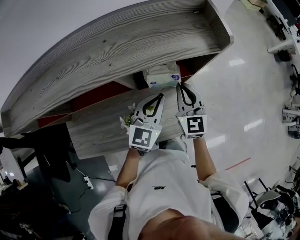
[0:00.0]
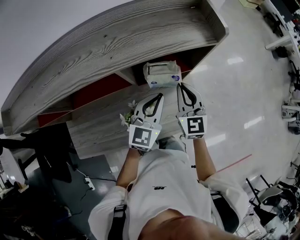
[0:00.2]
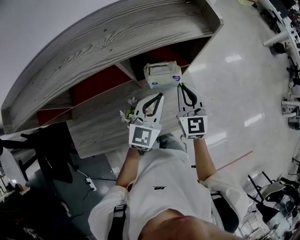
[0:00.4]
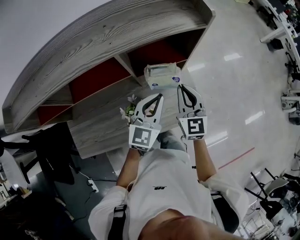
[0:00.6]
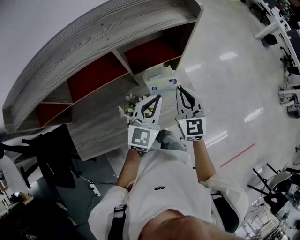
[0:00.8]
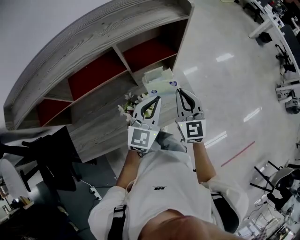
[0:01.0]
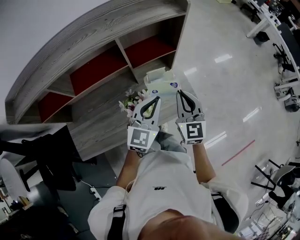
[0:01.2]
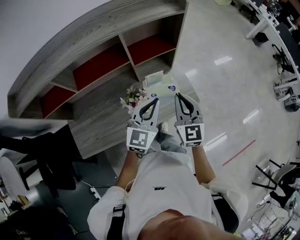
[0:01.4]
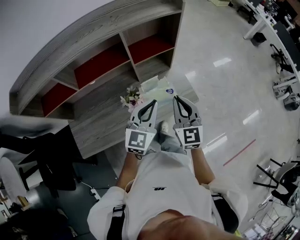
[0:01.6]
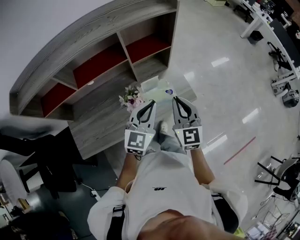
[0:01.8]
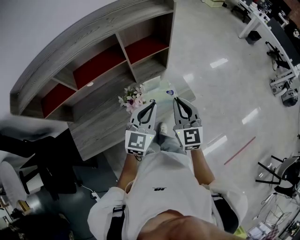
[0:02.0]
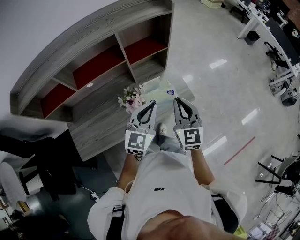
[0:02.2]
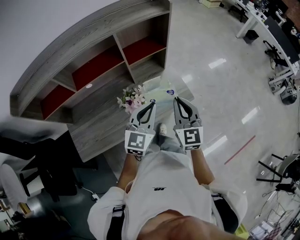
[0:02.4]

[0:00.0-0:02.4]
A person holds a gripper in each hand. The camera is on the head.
0:00.0 to 0:01.2: The two grippers go some 15 cm backward.
0:01.2 to 0:02.4: Both grippers move backward, some 10 cm.

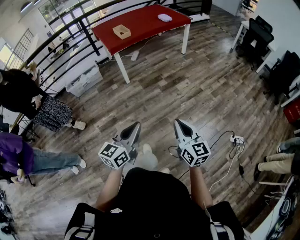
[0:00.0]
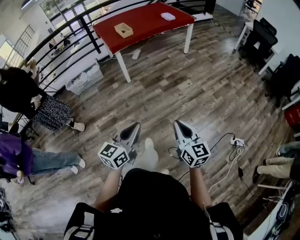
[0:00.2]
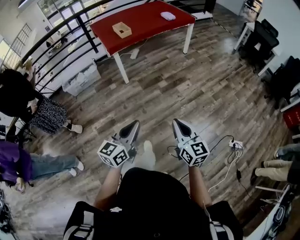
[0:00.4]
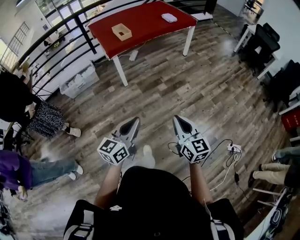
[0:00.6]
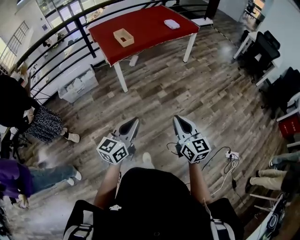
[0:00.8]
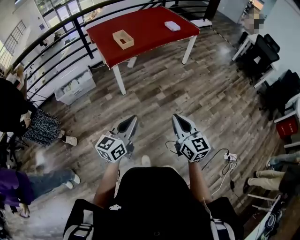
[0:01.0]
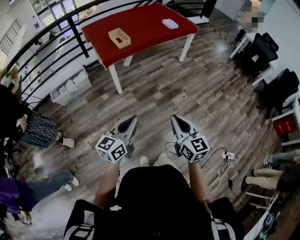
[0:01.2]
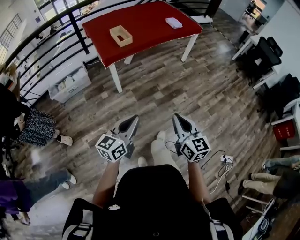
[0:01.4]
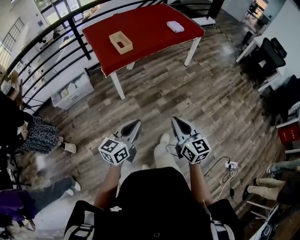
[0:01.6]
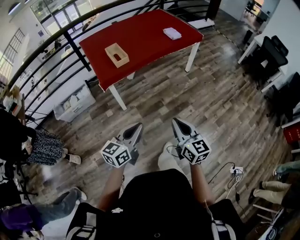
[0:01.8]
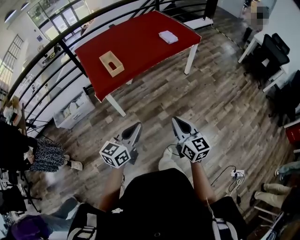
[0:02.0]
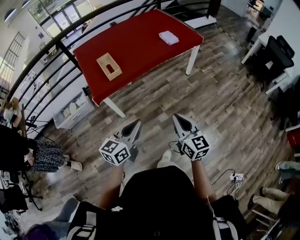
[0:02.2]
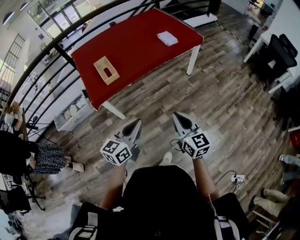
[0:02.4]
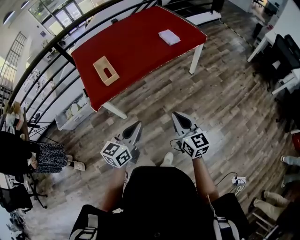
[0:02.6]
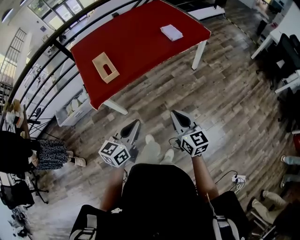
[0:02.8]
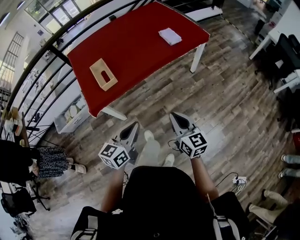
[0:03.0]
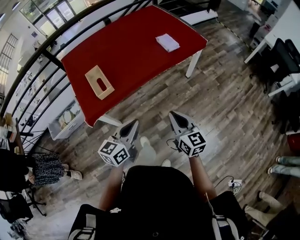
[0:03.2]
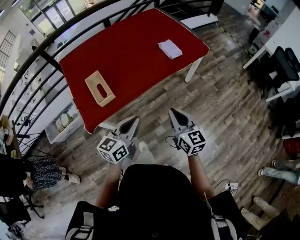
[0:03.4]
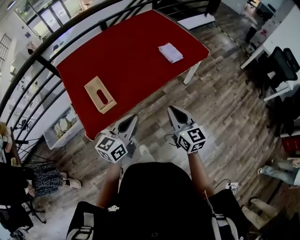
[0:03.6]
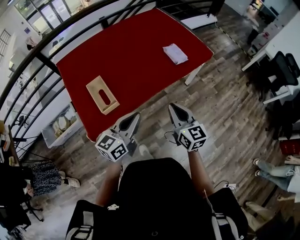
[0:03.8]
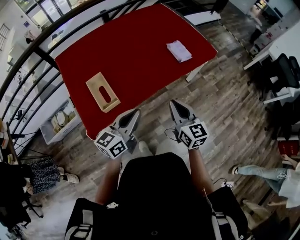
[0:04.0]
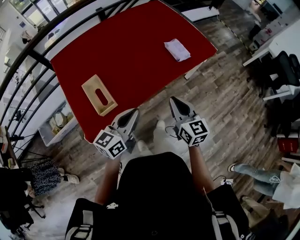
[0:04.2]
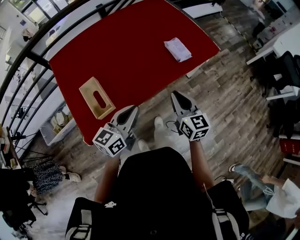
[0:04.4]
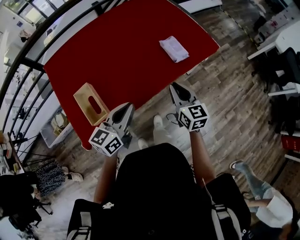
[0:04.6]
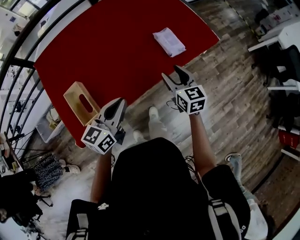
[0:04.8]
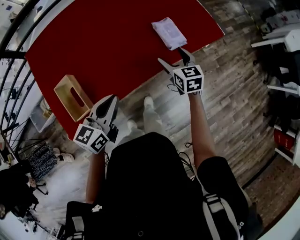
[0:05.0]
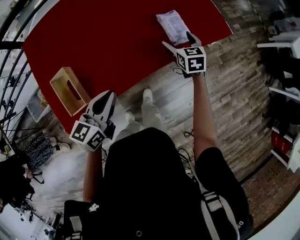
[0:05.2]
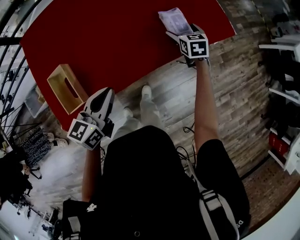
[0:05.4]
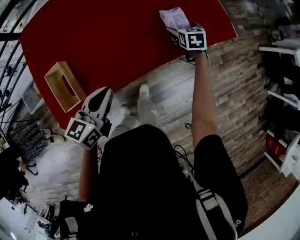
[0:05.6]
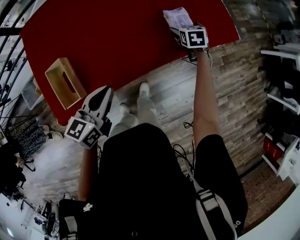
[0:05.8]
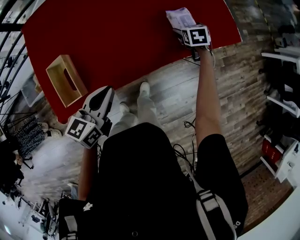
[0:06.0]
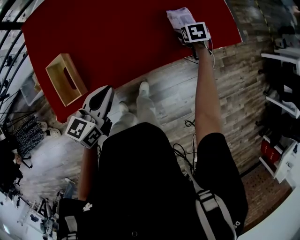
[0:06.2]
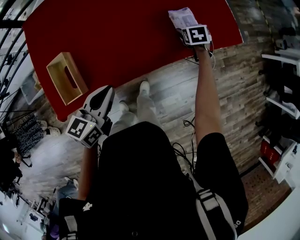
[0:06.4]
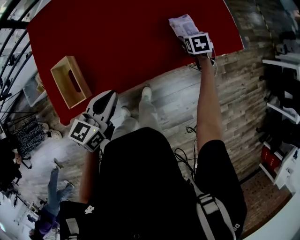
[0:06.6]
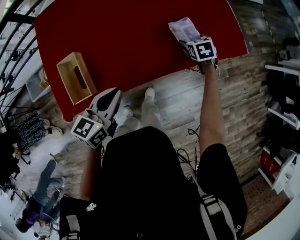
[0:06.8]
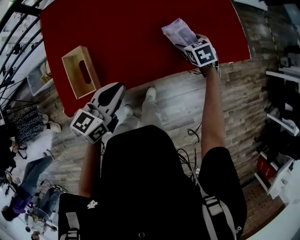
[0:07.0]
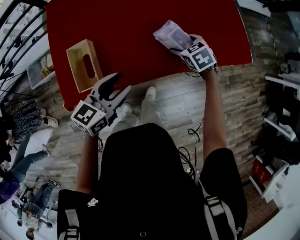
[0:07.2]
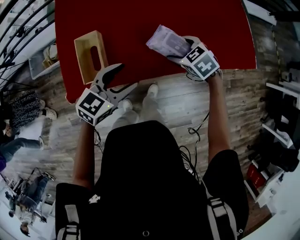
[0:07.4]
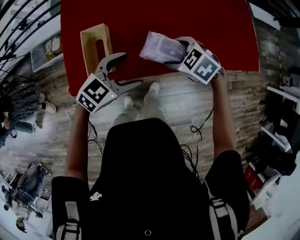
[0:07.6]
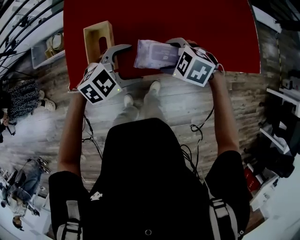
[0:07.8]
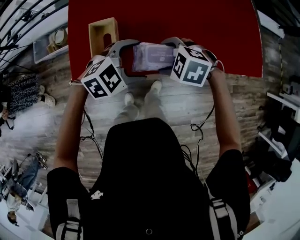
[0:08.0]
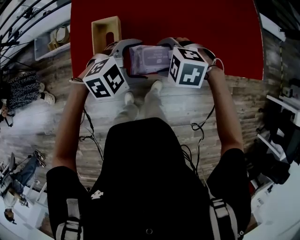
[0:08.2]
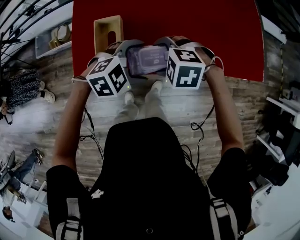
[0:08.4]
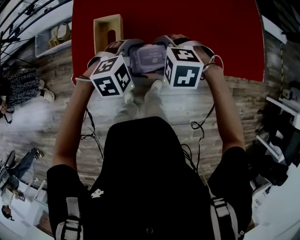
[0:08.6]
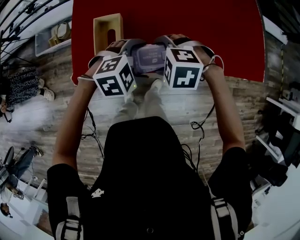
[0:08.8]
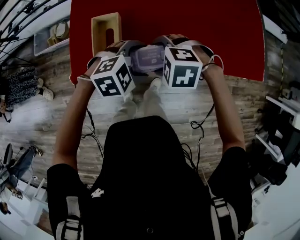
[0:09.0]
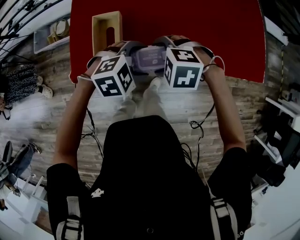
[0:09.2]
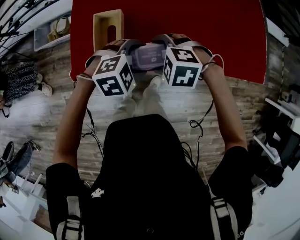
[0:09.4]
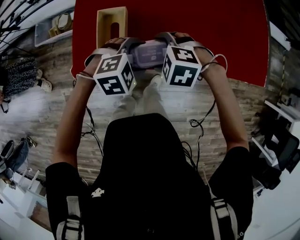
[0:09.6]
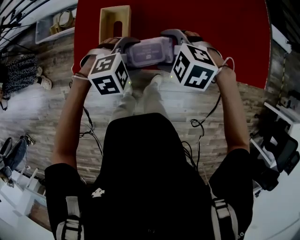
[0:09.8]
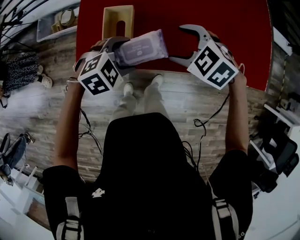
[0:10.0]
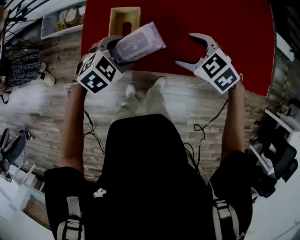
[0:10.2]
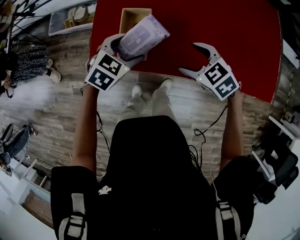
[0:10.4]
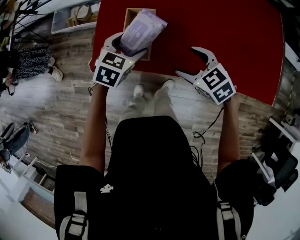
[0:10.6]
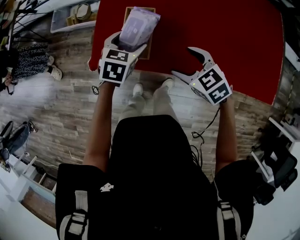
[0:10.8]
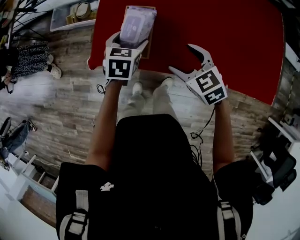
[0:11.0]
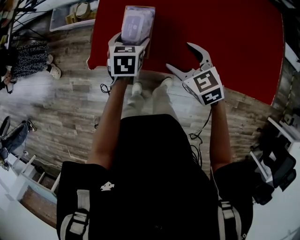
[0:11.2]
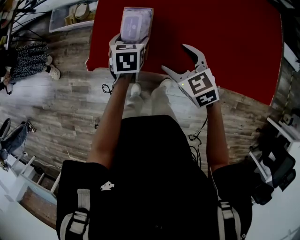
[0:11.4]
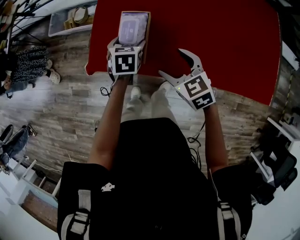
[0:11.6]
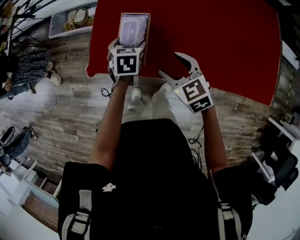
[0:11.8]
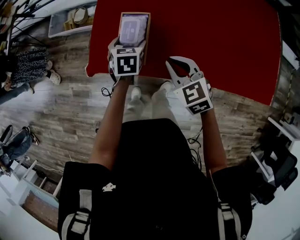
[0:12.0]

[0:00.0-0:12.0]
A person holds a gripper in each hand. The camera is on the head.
0:00.0 to 0:01.6: The pair of grippers is taken forward, about 40 cm.
0:01.6 to 0:03.0: The two grippers go some 35 cm forward.
0:03.0 to 0:04.4: The grippers both shift forward by about 30 cm.
0:04.4 to 0:06.0: The left gripper heads forward and downward, covering roughly 15 cm, and turns by about 20 degrees. Meanwhile the right gripper goes roughly 40 cm forward and downward, angles its fingers downward, by some 40 degrees, and opens its fingers.
0:06.0 to 0:07.6: The left gripper shifts by roughly 10 cm, changes its angle by about 30 degrees, and opens its fingers. Meanwhile the right gripper changes place by about 35 cm, and swivels approximately 60 degrees.
0:07.6 to 0:09.0: The left gripper swivels roughly 30 degrees. The right gripper shifts by roughly 10 cm, and rotates approximately 30 degrees.
0:09.0 to 0:10.4: The left gripper moves some 15 cm, and changes its angle by some 40 degrees. Meanwhile the right gripper turns by approximately 30 degrees.
0:10.4 to 0:12.0: The right gripper travels to the left by approximately 5 cm, and closes up; the left gripper goes roughly 10 cm forward and downward, and swivels some 40 degrees.

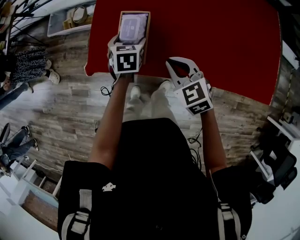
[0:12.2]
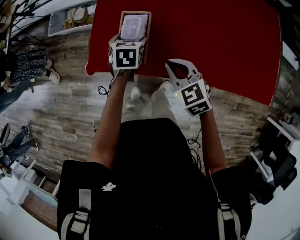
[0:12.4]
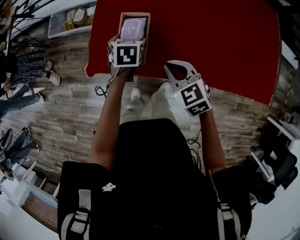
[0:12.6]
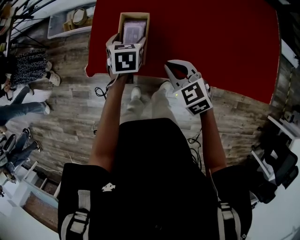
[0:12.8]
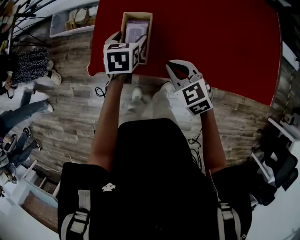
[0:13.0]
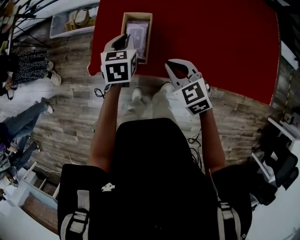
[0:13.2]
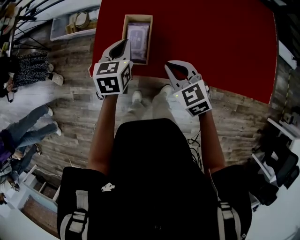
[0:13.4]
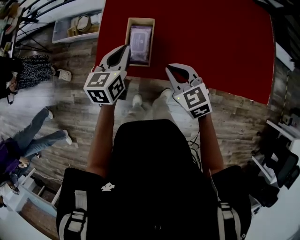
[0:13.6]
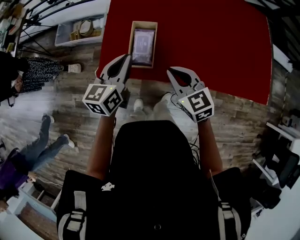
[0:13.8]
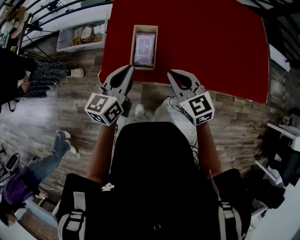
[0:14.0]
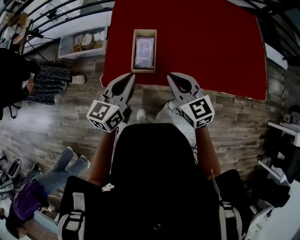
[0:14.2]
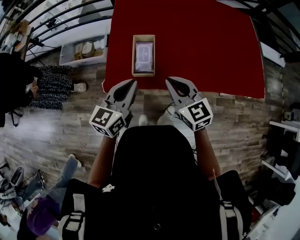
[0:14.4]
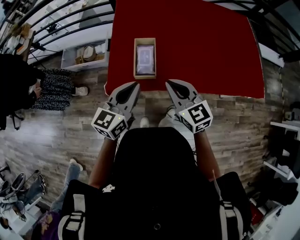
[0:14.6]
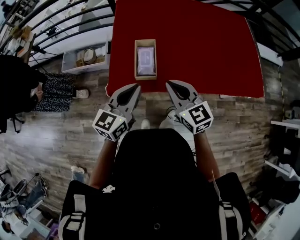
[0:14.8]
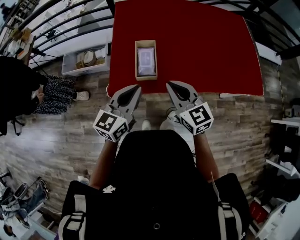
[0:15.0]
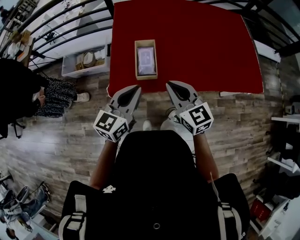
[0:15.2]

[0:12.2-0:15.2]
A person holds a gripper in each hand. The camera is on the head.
0:12.2 to 0:13.8: The right gripper goes approximately 5 cm upward, while the left gripper moves upward and backward, approximately 20 cm, tilts its fingers approximately 40 degrees upward, and closes its fingers.
0:13.8 to 0:15.2: The left gripper is displaced backward and upward by about 15 cm, and changes its angle by roughly 20 degrees. Meanwhile the right gripper shifts about 15 cm upward and backward.

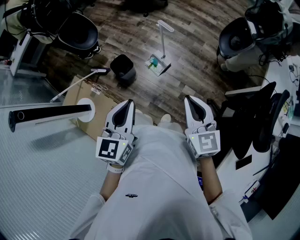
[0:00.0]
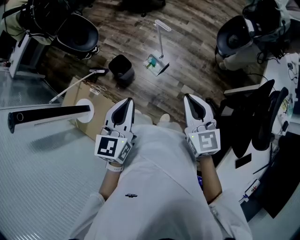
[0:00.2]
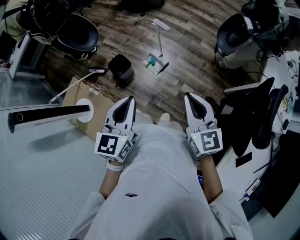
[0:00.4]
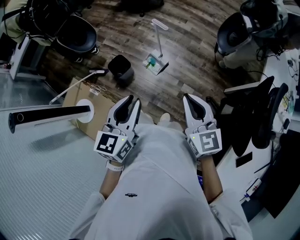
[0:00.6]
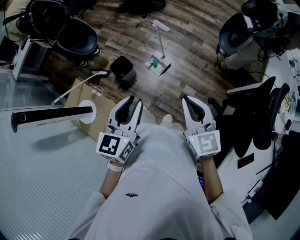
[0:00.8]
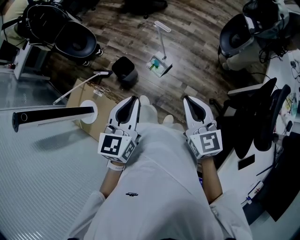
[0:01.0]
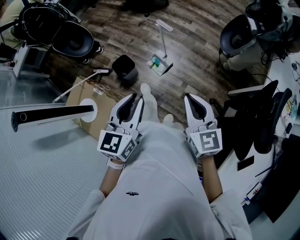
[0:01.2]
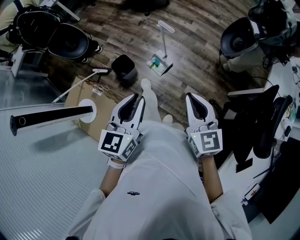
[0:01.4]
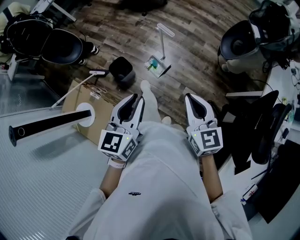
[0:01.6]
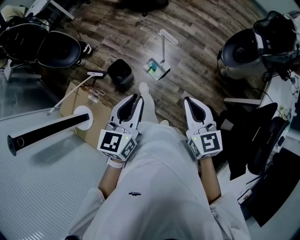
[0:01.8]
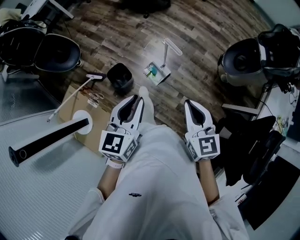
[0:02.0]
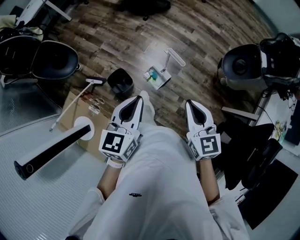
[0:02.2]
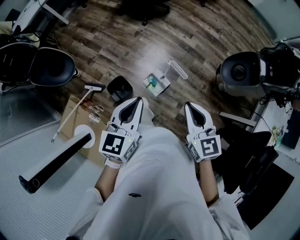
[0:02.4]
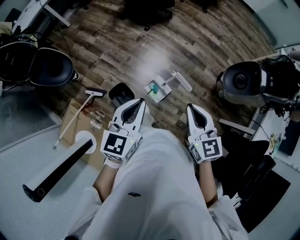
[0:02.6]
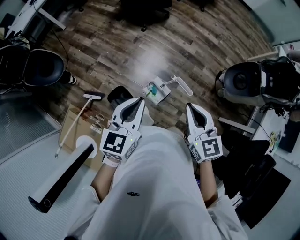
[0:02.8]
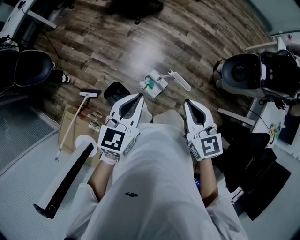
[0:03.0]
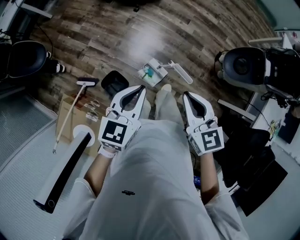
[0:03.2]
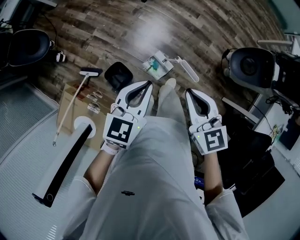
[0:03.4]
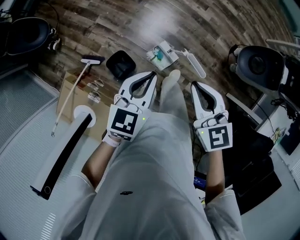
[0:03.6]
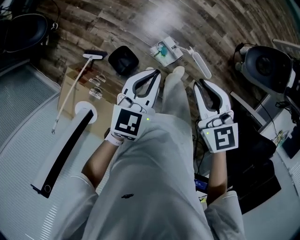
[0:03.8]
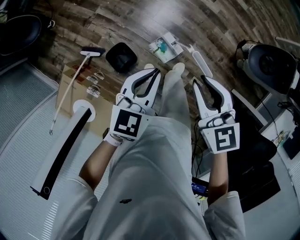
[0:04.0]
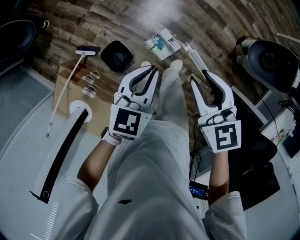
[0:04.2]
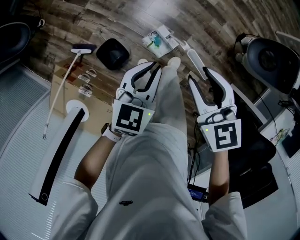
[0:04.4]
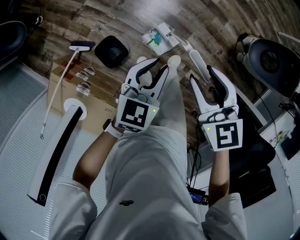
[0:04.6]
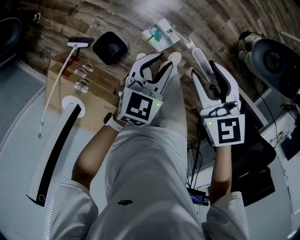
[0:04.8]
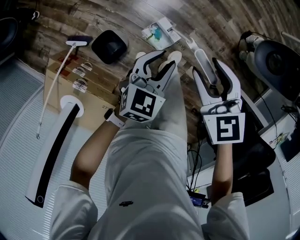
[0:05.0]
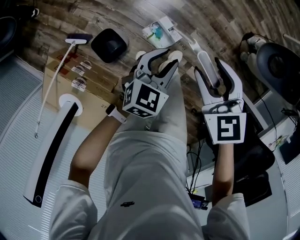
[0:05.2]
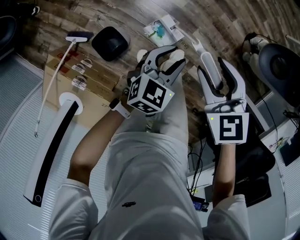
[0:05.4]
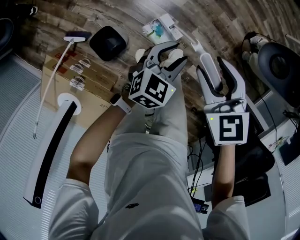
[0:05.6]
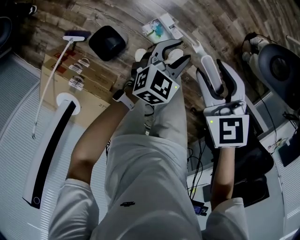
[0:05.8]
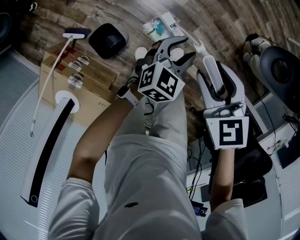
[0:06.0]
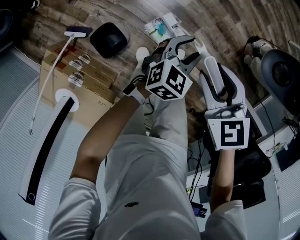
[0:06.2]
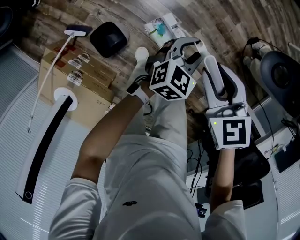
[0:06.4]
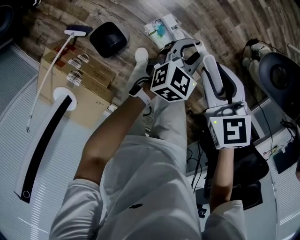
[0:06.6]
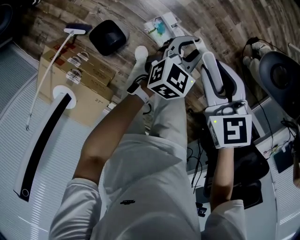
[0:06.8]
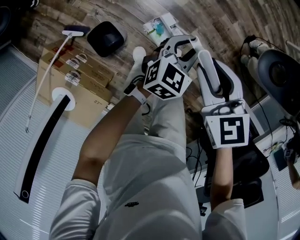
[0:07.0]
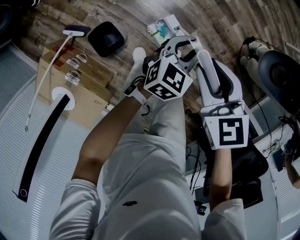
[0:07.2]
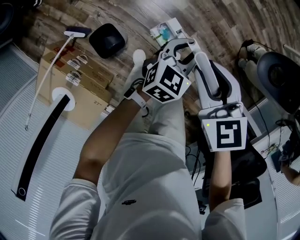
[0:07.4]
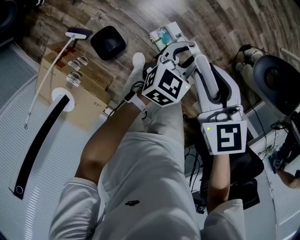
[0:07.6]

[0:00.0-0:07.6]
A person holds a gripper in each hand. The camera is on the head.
0:00.0 to 0:01.6: The two grippers go some 10 cm forward.
0:01.6 to 0:03.0: The right gripper travels forward and to the left by about 35 cm. The left gripper heads forward, covering approximately 35 cm.
0:03.0 to 0:04.6: The right gripper heads downward and forward, covering approximately 20 cm, and opens its fingers. The left gripper is displaced downward and to the right by approximately 25 cm.
0:04.6 to 0:06.0: The right gripper goes about 10 cm downward. Meanwhile the left gripper travels downward and to the right by roughly 15 cm, and opens.
0:06.0 to 0:07.6: The two grippers go some 5 cm upward.
